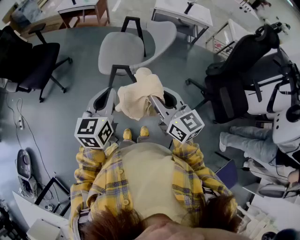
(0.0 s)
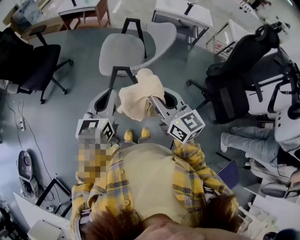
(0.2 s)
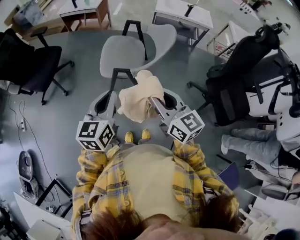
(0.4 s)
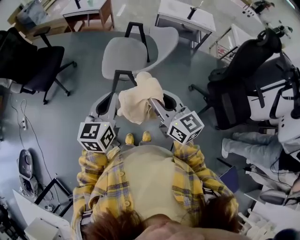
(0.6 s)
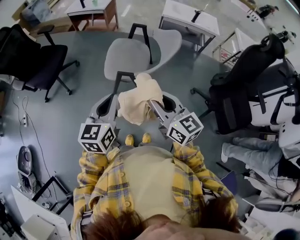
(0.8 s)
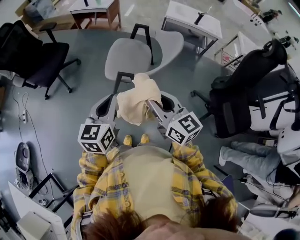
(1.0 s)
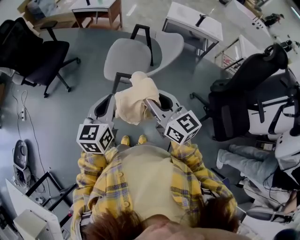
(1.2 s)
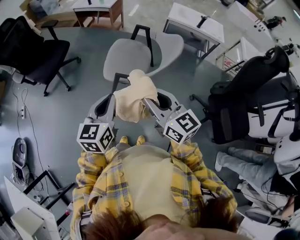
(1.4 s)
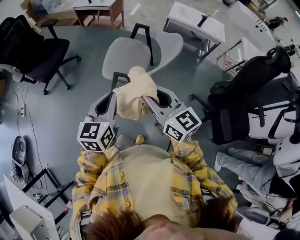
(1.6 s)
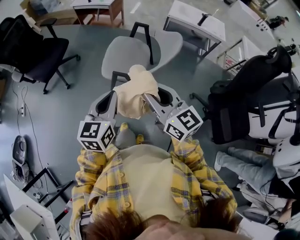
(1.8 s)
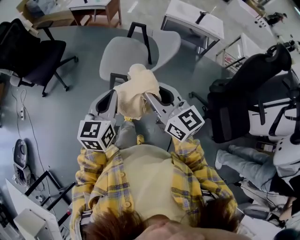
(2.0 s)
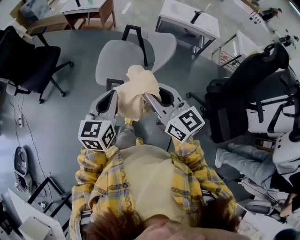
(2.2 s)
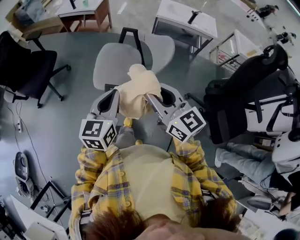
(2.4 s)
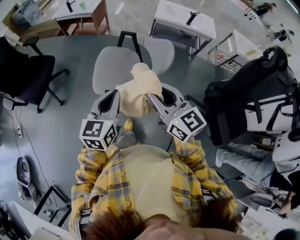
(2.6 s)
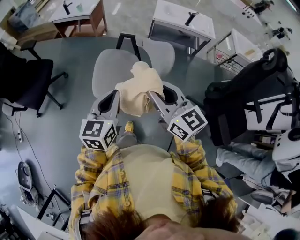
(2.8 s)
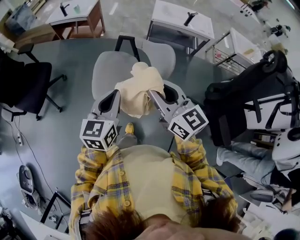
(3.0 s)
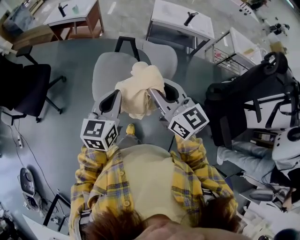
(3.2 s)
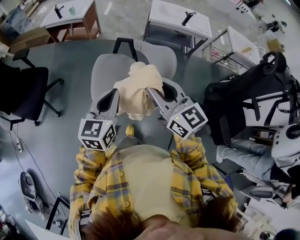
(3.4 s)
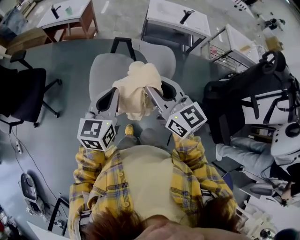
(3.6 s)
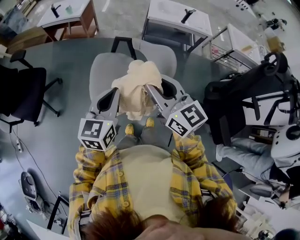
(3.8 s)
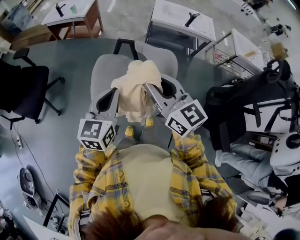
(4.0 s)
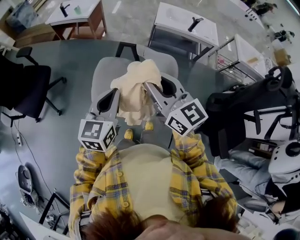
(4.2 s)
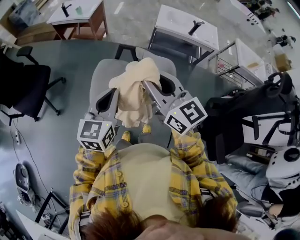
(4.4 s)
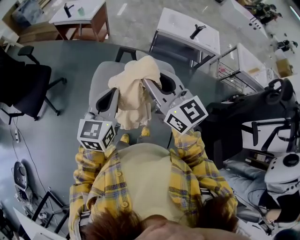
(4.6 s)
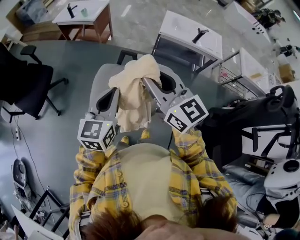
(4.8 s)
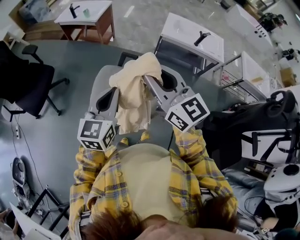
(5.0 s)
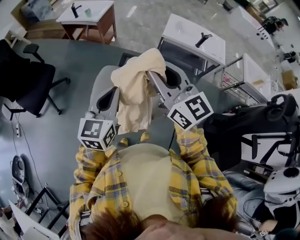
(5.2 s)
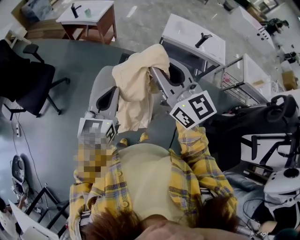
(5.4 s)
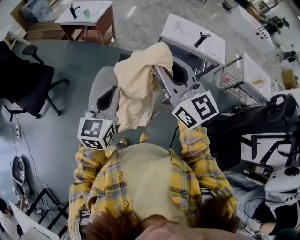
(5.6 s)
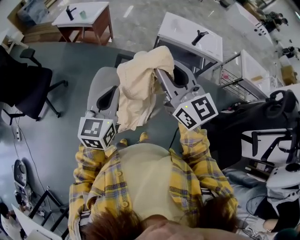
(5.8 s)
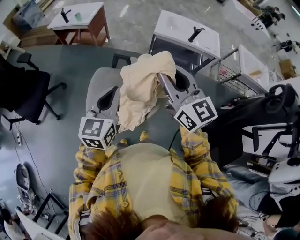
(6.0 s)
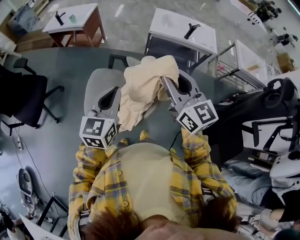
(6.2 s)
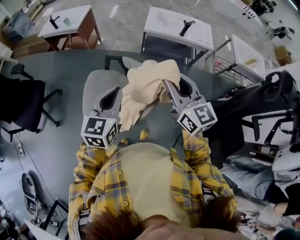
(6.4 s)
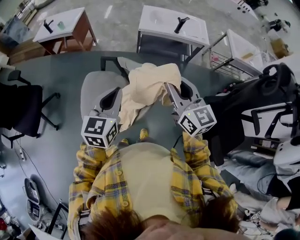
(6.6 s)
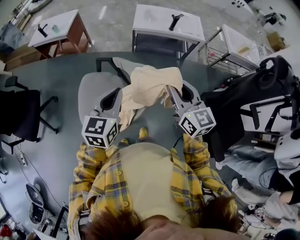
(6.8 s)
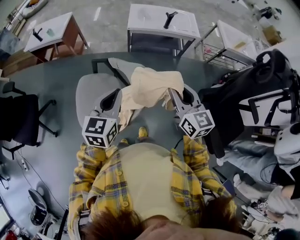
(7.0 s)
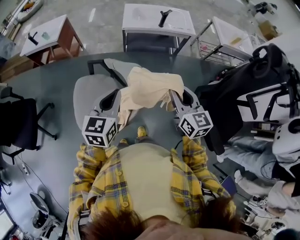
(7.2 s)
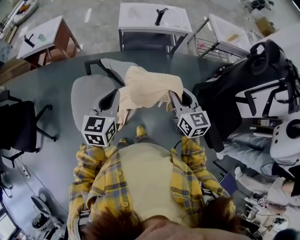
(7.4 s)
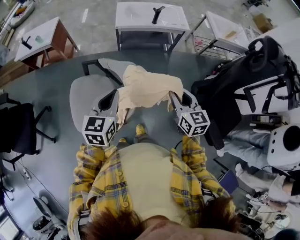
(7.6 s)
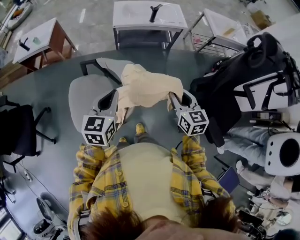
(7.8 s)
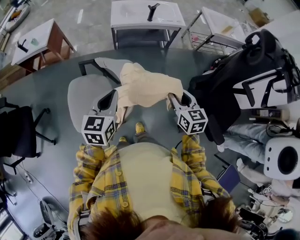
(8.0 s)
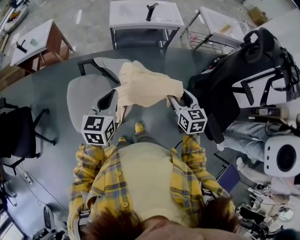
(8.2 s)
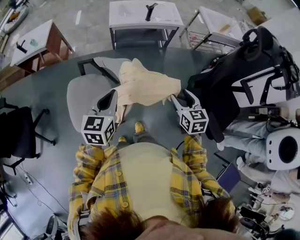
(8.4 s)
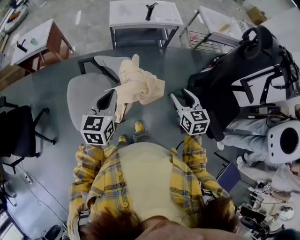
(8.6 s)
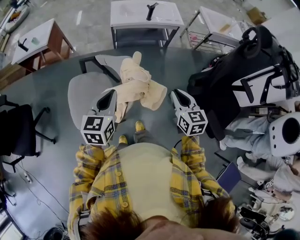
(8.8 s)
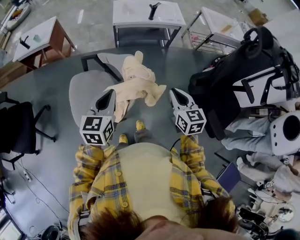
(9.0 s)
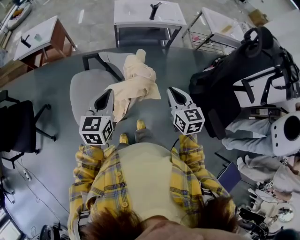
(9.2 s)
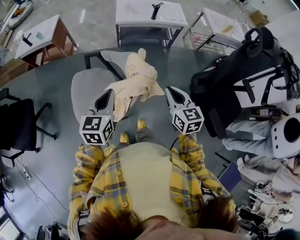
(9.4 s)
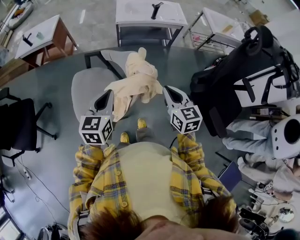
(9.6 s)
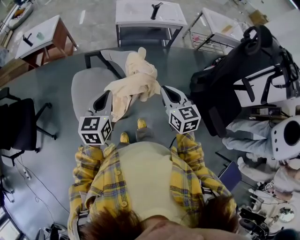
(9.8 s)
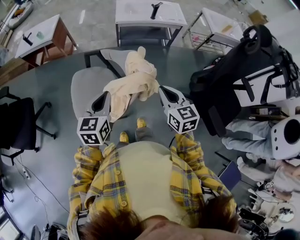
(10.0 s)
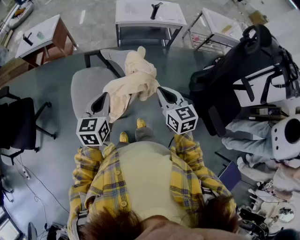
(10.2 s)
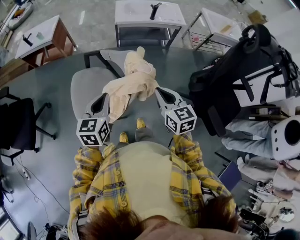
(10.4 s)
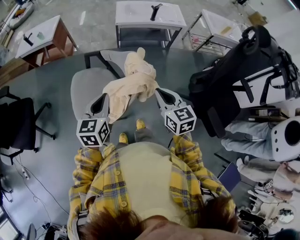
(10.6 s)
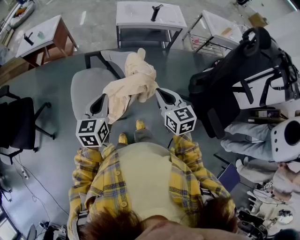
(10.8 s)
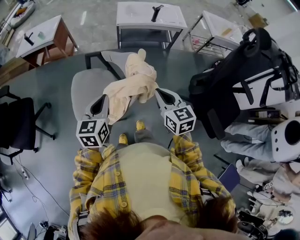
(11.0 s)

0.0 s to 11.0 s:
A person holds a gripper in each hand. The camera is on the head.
0.0 to 1.6 s: The right gripper ends up about 5 cm from where it was.
1.6 to 3.2 s: The grippers both shift forward by approximately 20 cm.
3.2 to 4.8 s: The grippers both shift forward by approximately 10 cm.
4.8 to 6.2 s: The left gripper shifts approximately 5 cm to the right. The right gripper is displaced to the right by roughly 10 cm.
6.2 to 7.8 s: The left gripper heads to the right and downward, covering approximately 10 cm; the right gripper is displaced to the right and downward by approximately 25 cm, and rotates about 40 degrees.
7.8 to 9.4 s: The right gripper is displaced backward and to the left by approximately 10 cm, and closes. The left gripper shifts some 5 cm backward.
9.4 to 11.0 s: There are only small adjustments of the grippers.

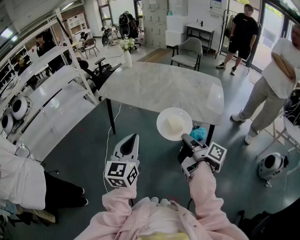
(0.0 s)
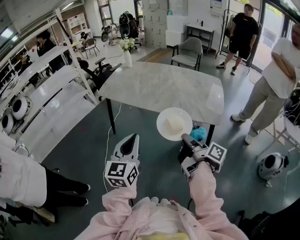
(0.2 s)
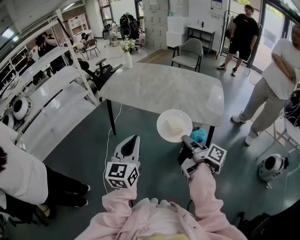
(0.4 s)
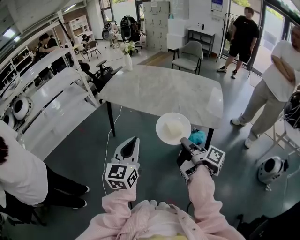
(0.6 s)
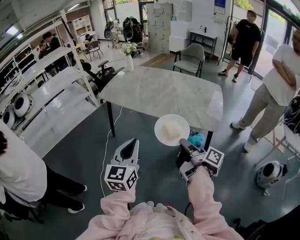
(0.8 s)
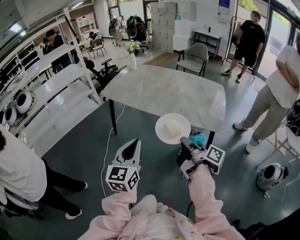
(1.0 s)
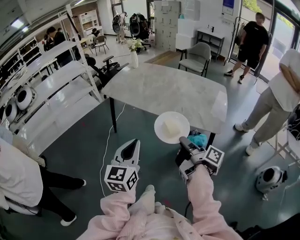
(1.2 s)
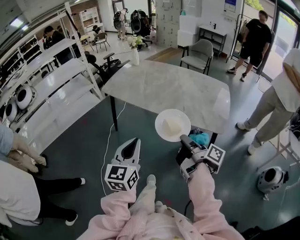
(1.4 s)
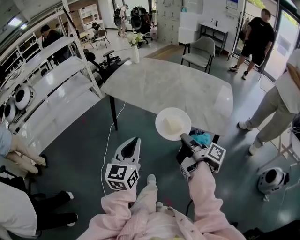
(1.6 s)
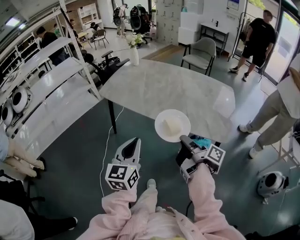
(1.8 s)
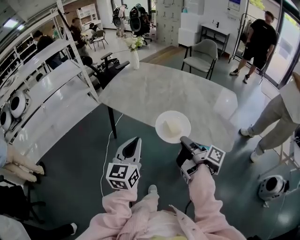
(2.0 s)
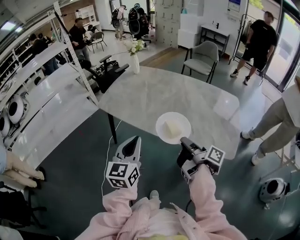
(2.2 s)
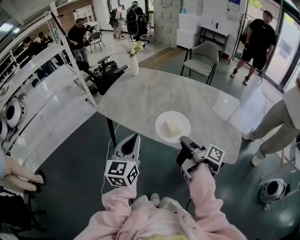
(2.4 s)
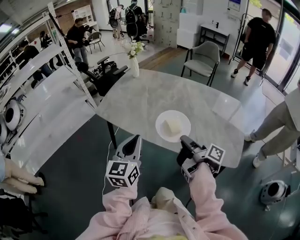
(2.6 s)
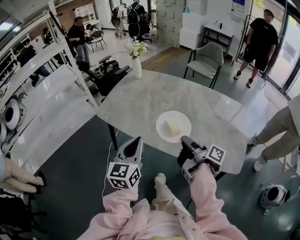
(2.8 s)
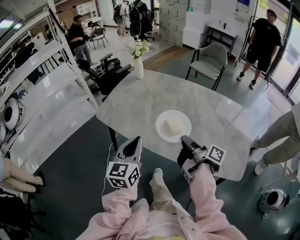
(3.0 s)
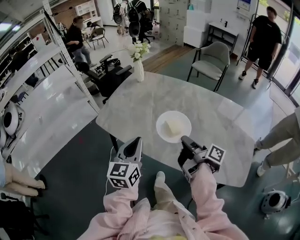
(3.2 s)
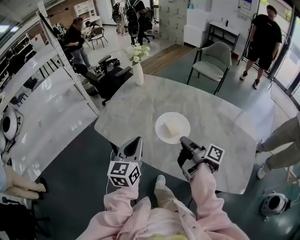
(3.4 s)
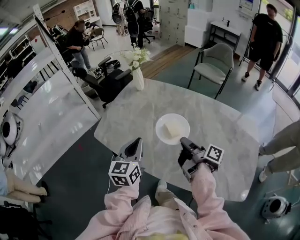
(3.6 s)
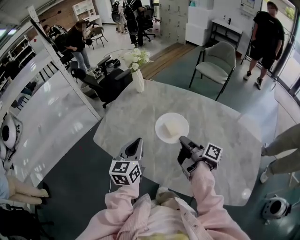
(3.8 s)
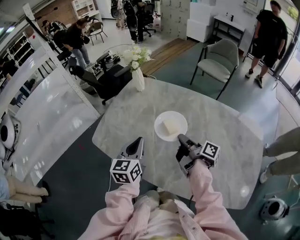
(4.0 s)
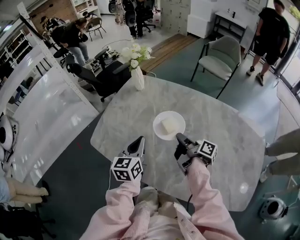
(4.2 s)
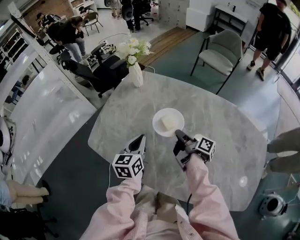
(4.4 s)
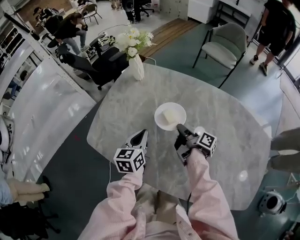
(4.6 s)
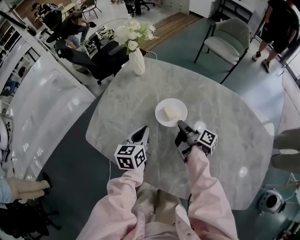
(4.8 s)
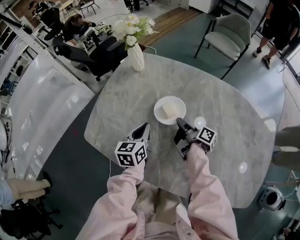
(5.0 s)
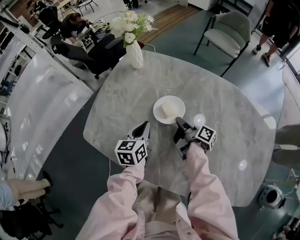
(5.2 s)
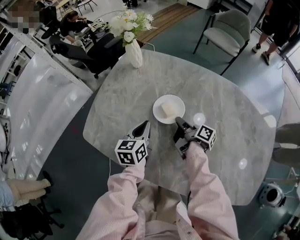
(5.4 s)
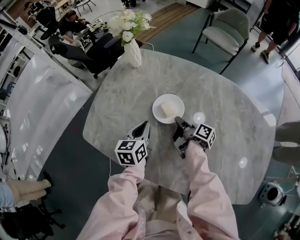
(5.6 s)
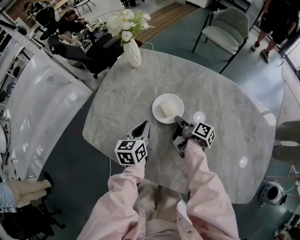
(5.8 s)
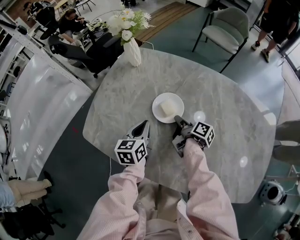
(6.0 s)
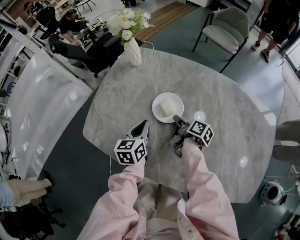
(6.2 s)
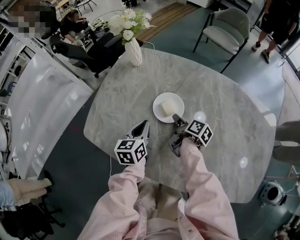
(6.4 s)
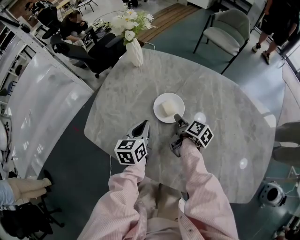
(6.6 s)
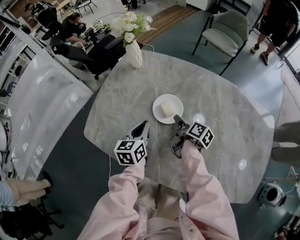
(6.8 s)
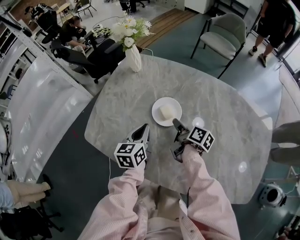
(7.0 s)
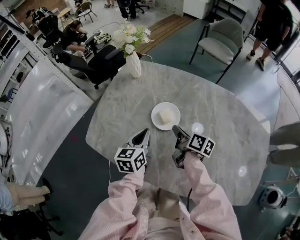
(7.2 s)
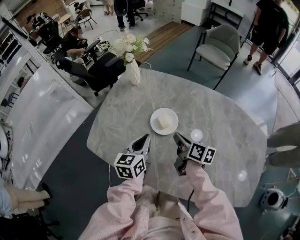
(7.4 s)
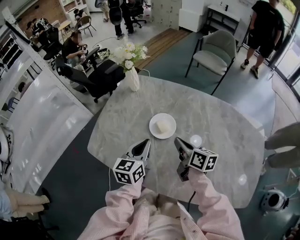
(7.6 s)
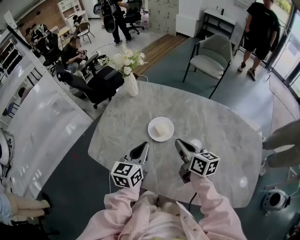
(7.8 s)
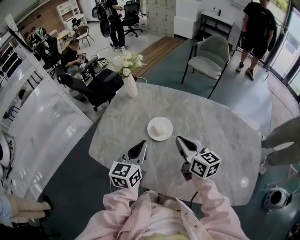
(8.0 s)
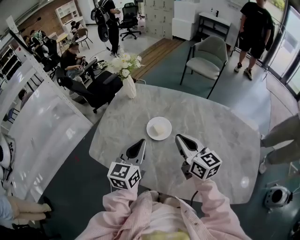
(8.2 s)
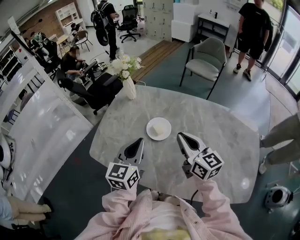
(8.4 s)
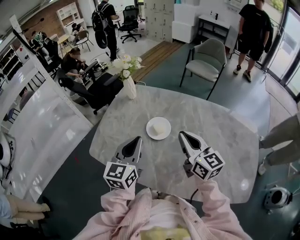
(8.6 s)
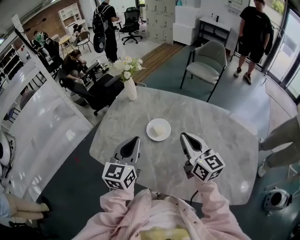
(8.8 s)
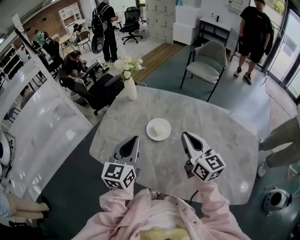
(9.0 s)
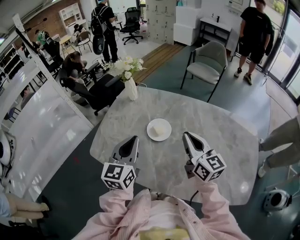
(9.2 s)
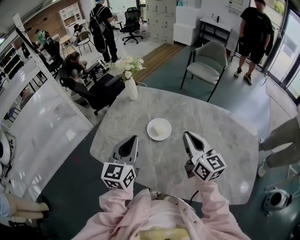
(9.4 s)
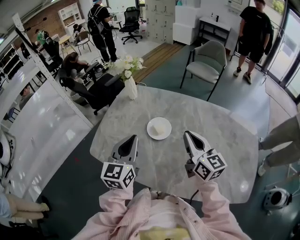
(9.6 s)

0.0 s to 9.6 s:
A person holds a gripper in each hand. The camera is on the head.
0.0 to 1.6 s: The left gripper ends up some 5 cm from where it was.
1.6 to 3.2 s: The left gripper shifts by roughly 40 cm.
3.2 to 4.8 s: The left gripper moves approximately 35 cm, and changes its angle by some 20 degrees.
6.4 to 8.0 s: The left gripper goes roughly 15 cm upward, and rotates some 20 degrees.
8.0 to 9.6 s: The left gripper travels upward by approximately 5 cm.

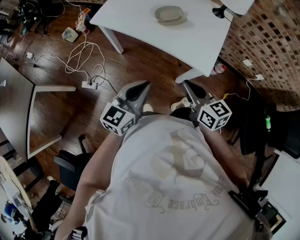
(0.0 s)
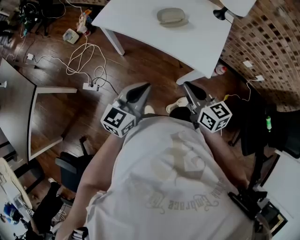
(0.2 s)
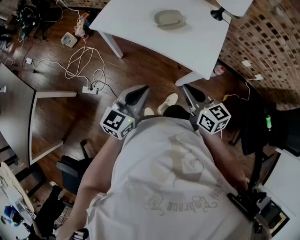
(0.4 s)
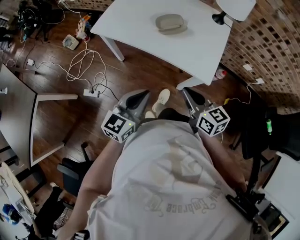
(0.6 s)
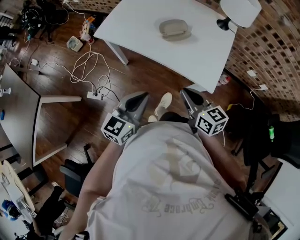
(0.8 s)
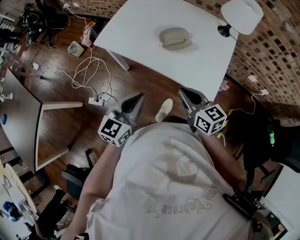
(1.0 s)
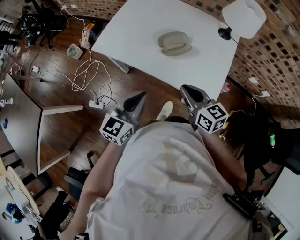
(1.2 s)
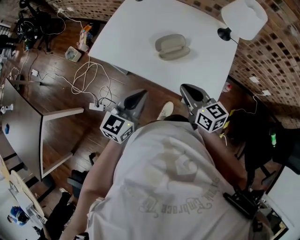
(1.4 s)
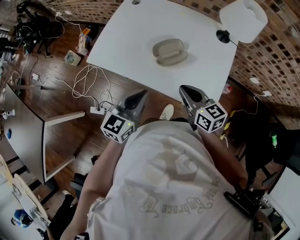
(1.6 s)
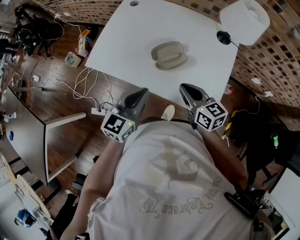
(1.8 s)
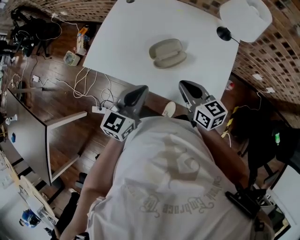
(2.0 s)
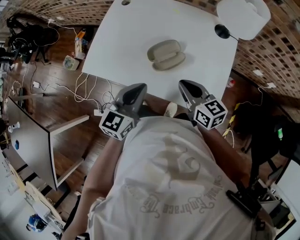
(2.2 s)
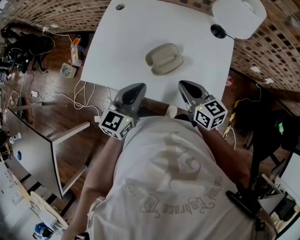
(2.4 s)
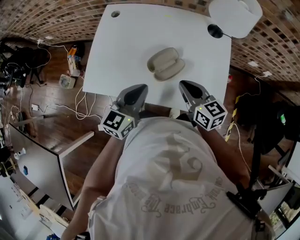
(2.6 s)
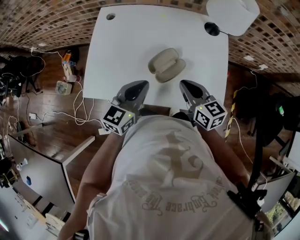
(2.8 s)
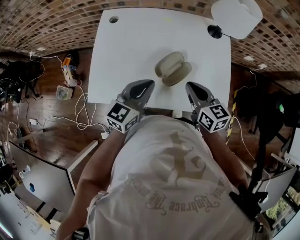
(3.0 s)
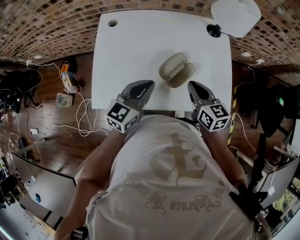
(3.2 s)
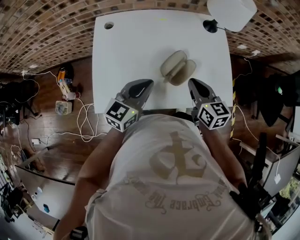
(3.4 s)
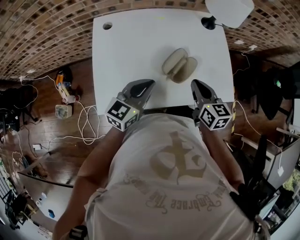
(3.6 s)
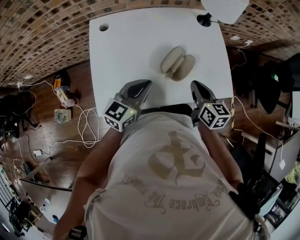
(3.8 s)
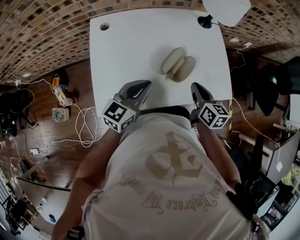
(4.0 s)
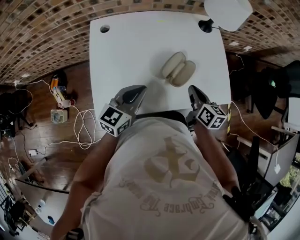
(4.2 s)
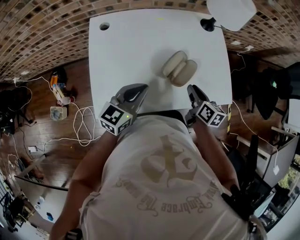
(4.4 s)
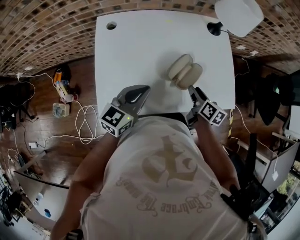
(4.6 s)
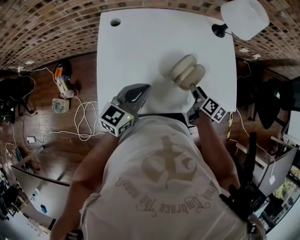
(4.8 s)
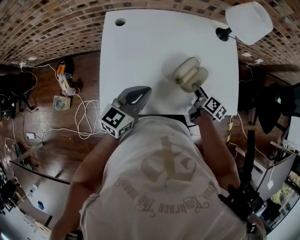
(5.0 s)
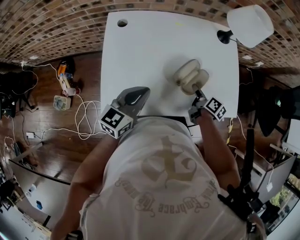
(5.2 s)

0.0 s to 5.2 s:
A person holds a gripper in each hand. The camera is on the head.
0.0 to 1.8 s: The two grippers go some 25 cm forward.
1.8 to 3.4 s: The left gripper shifts by approximately 20 cm, and changes its angle by approximately 30 degrees. Meanwhile the right gripper changes place by some 10 cm, and rotates some 40 degrees.
3.4 to 5.2 s: The right gripper moves downward, about 15 cm, rotates around the line of its fingers by roughly 50 degrees, clockwise from behind, and opens up; the left gripper moves to the left, roughly 5 cm.
